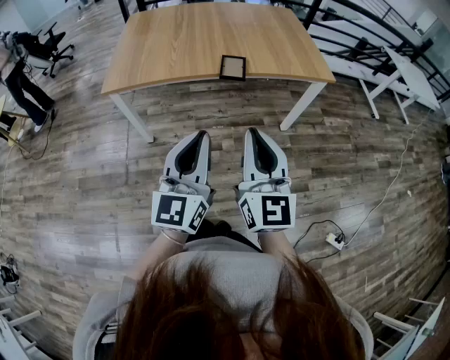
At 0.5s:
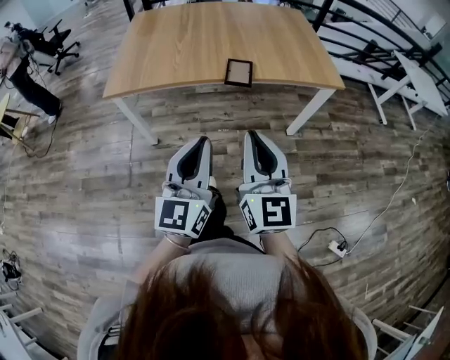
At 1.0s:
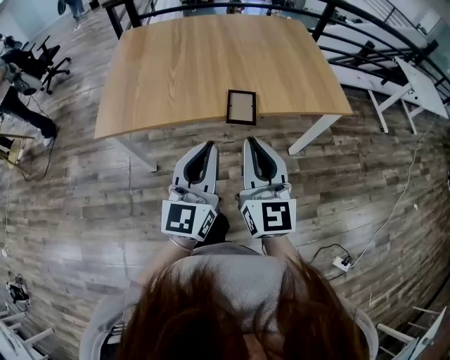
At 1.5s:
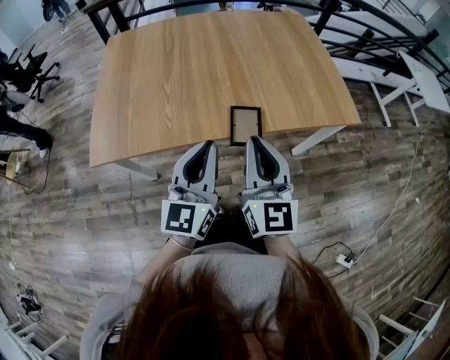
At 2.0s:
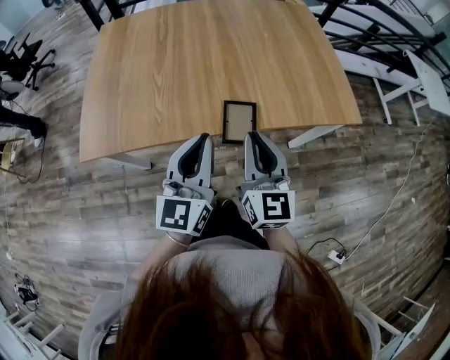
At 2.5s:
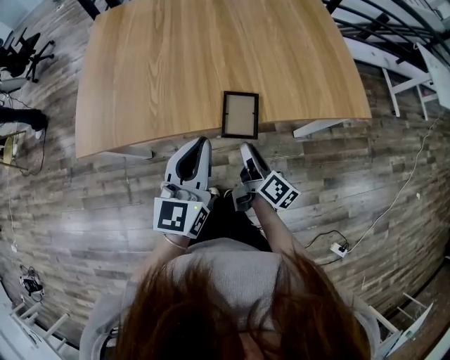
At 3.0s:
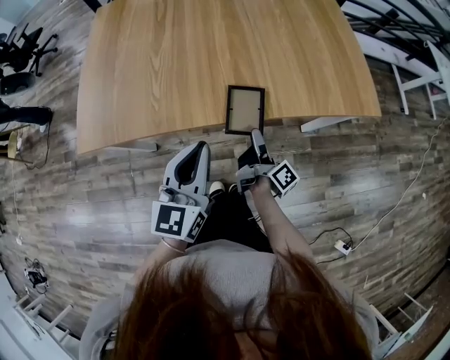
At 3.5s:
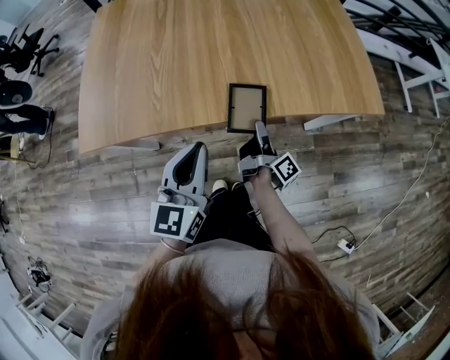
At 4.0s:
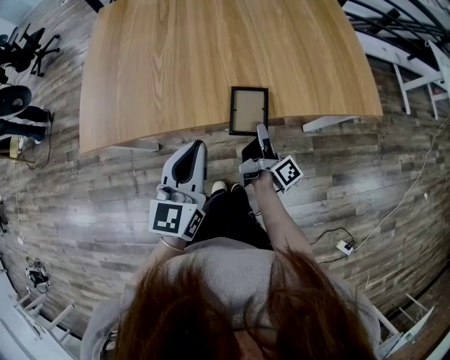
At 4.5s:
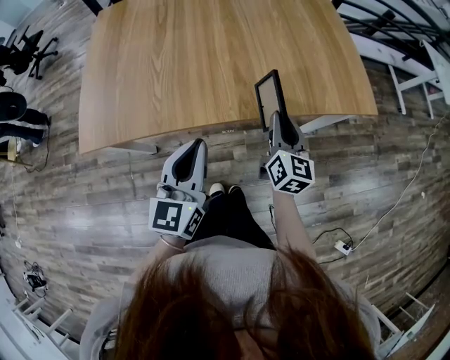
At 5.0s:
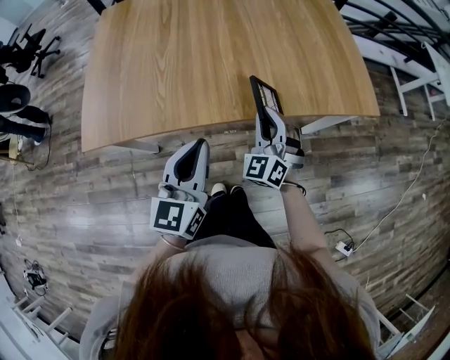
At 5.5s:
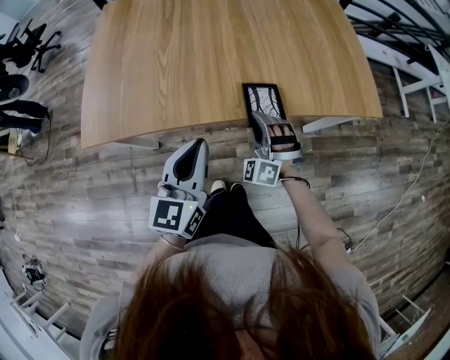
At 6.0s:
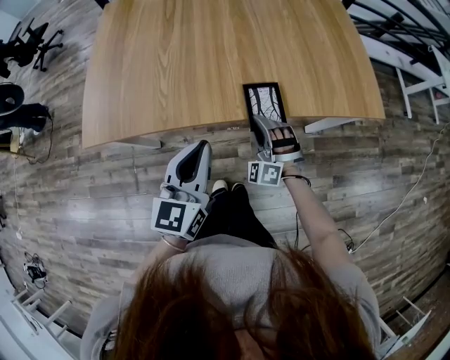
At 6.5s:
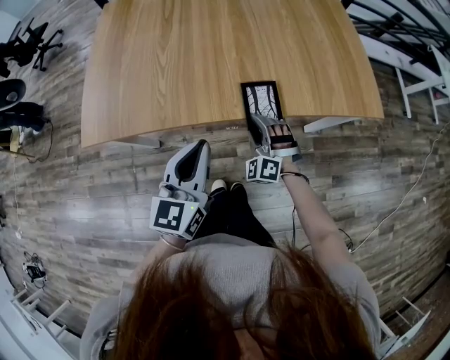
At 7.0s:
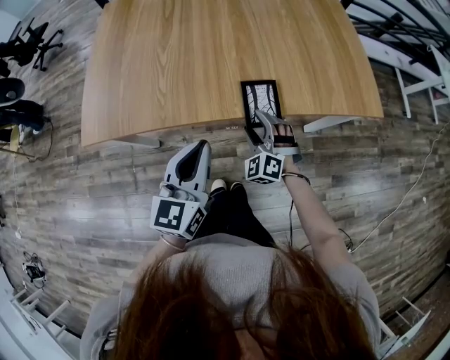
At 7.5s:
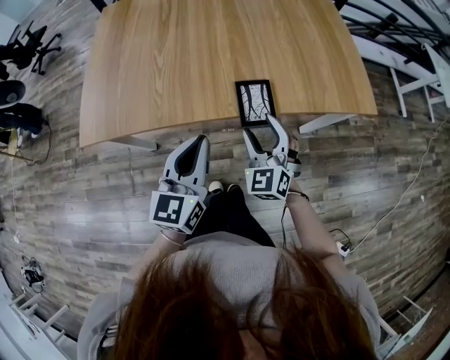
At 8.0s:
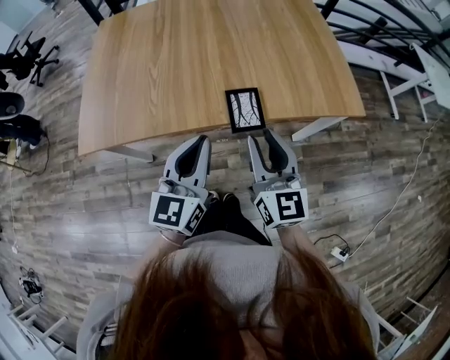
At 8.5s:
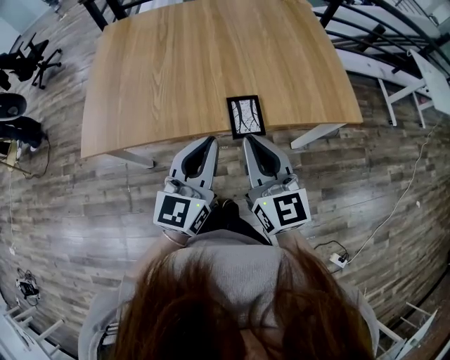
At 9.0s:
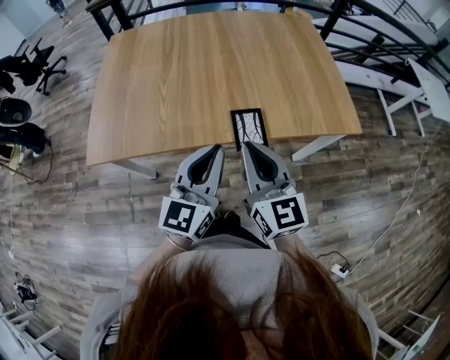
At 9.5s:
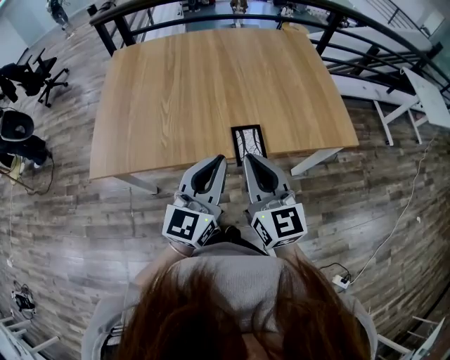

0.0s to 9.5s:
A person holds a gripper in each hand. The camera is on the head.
0.0s to 2.0s: The two grippers go approximately 35 cm forward.
2.0s to 4.0s: The left gripper heads downward, covering about 5 cm, while the right gripper heads downward, covering some 20 cm, and rotates around the line of its fingers by roughly 80 degrees, clockwise from behind.
4.0s to 5.5s: The right gripper moves to the left, roughly 5 cm, reaches about 10 cm upward, then returns, and rolls counterclockwise, seen from behind, by about 160 degrees.
5.5s to 7.5s: The right gripper goes roughly 5 cm upward, swivels approximately 30 degrees, and opens up.
7.5s to 9.5s: The left gripper moves upward, roughly 10 cm. The right gripper is displaced upward by roughly 15 cm, rotates roughly 40 degrees, and closes its fingers.

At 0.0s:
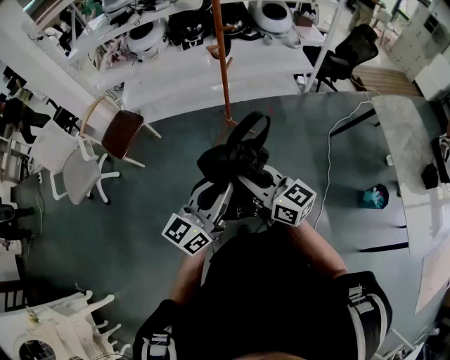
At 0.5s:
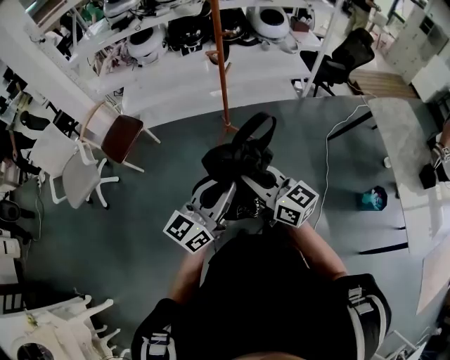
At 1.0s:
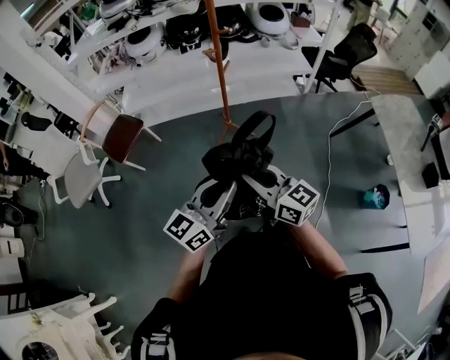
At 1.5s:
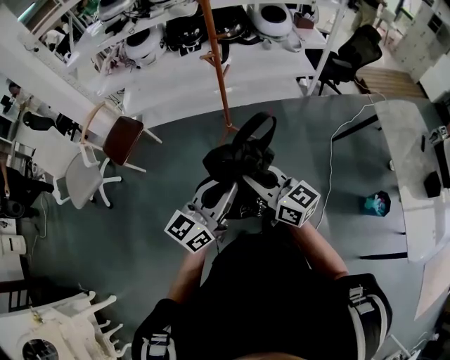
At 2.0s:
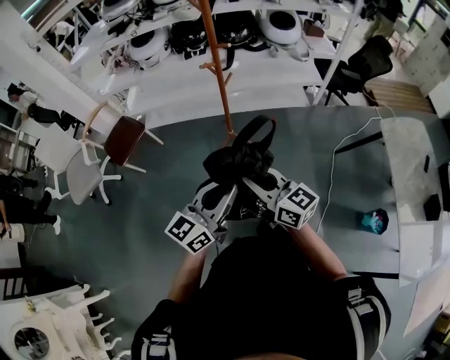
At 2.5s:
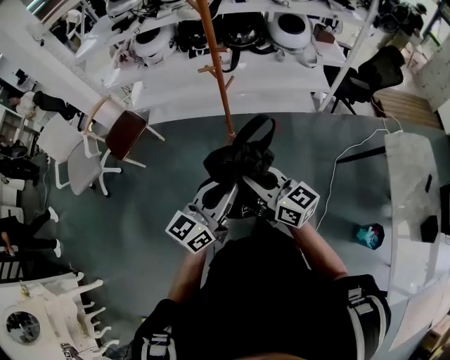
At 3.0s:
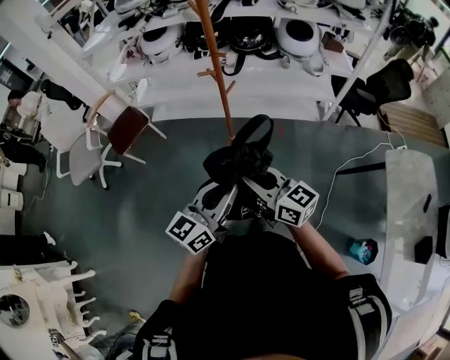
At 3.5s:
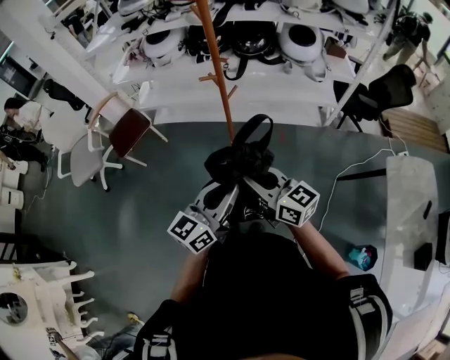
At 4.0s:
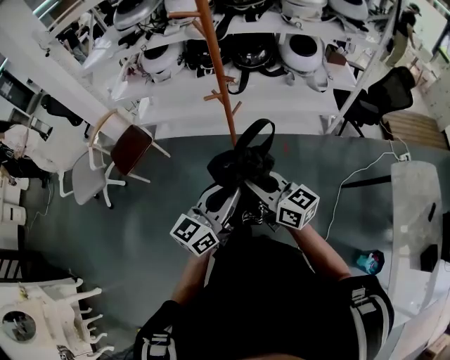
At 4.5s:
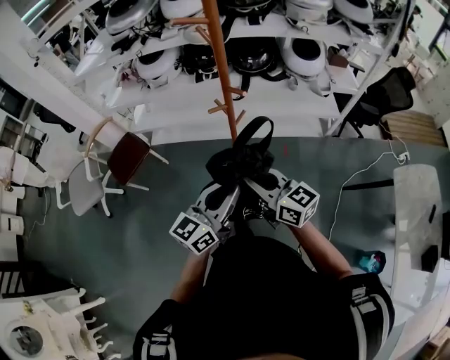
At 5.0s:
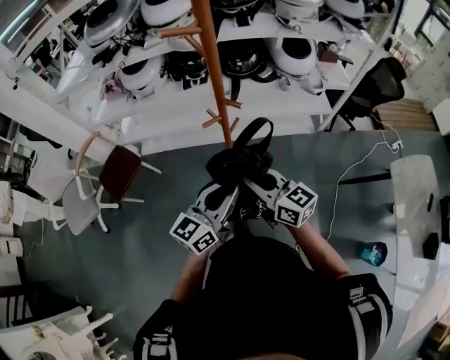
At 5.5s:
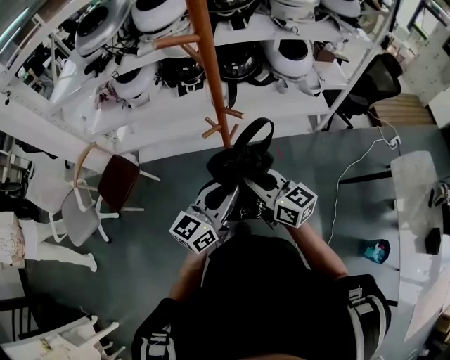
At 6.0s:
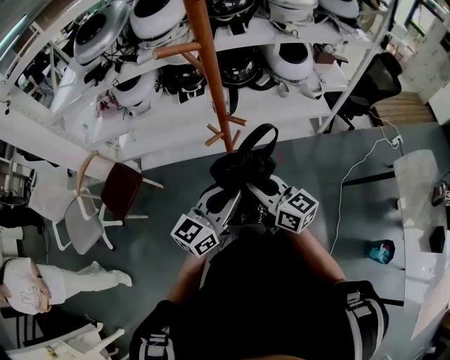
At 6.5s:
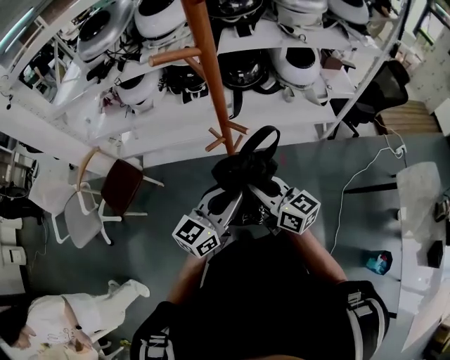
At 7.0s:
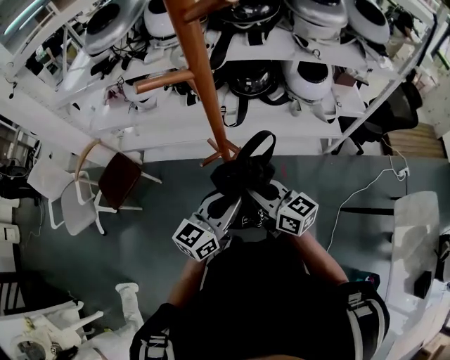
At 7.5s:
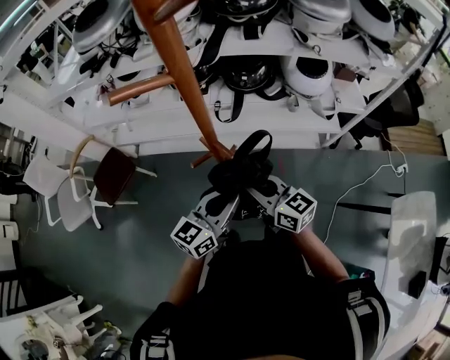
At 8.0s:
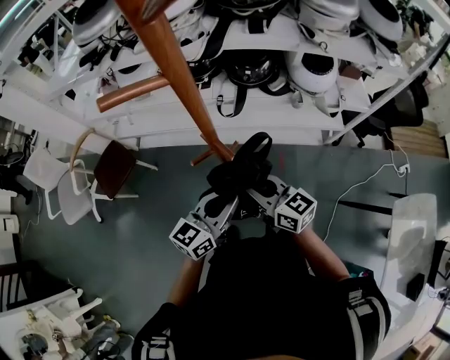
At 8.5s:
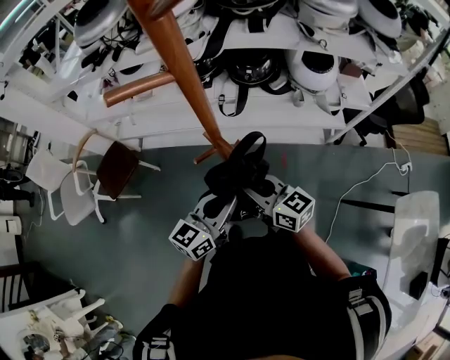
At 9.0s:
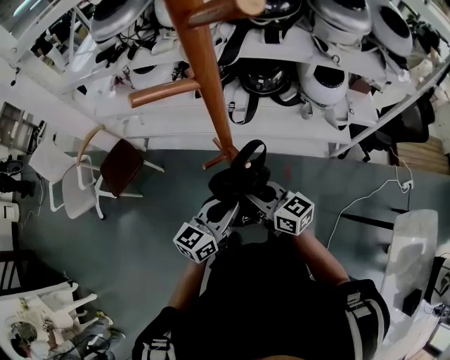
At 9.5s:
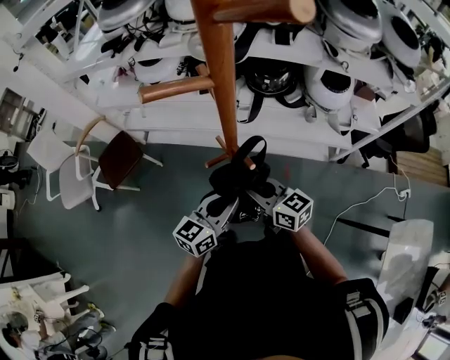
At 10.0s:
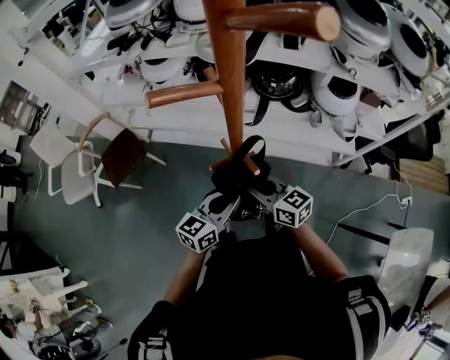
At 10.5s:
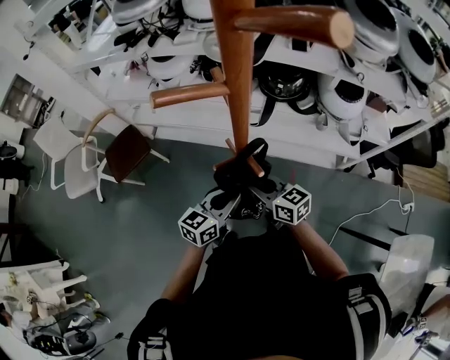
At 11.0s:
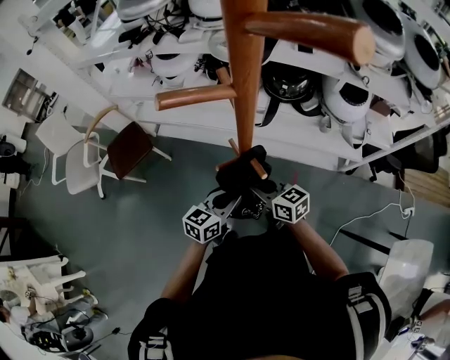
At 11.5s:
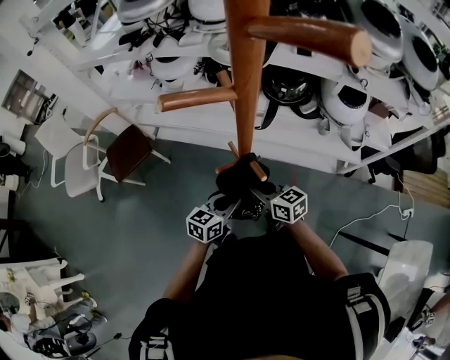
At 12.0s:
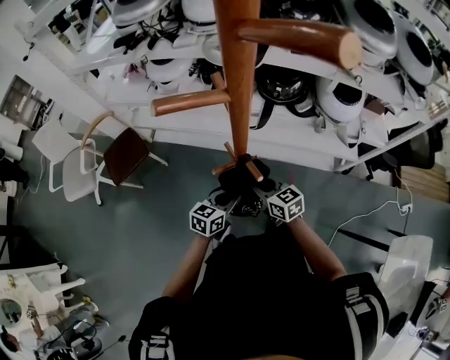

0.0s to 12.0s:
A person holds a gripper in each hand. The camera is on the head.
0.0s to 2.0s: Both grippers travel together forward and to the right, about 20 cm.
2.0s to 4.0s: Both grippers move forward and to the right, approximately 20 cm.
4.0s to 6.0s: Both grippers move forward, about 25 cm.
6.0s to 8.0s: Both grippers move forward and to the right, roughly 15 cm.
8.0s to 10.0s: The right gripper moves roughly 5 cm. Meanwhile the left gripper moves approximately 5 cm.
10.0s to 12.0s: Both grippers move downward, about 10 cm.

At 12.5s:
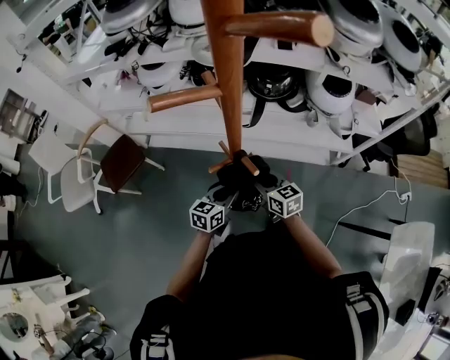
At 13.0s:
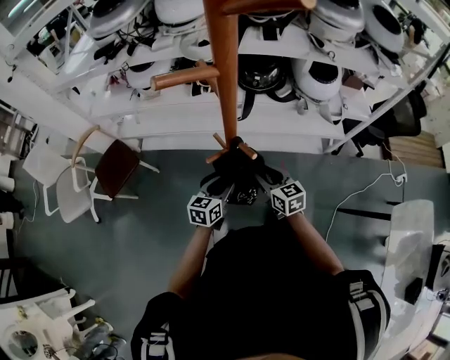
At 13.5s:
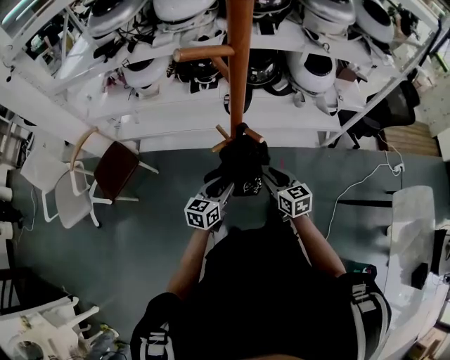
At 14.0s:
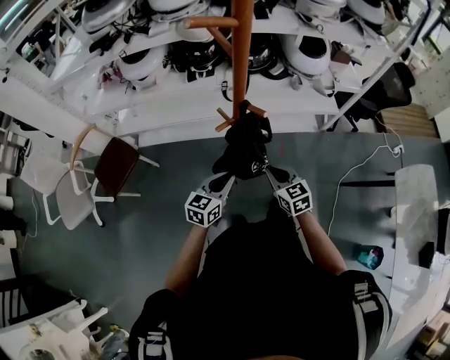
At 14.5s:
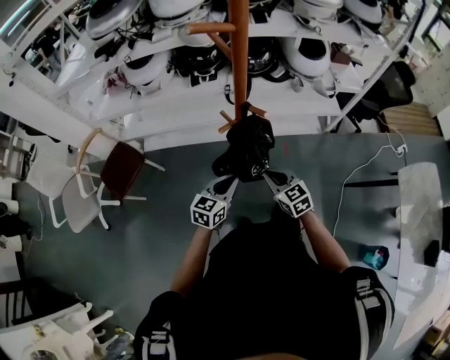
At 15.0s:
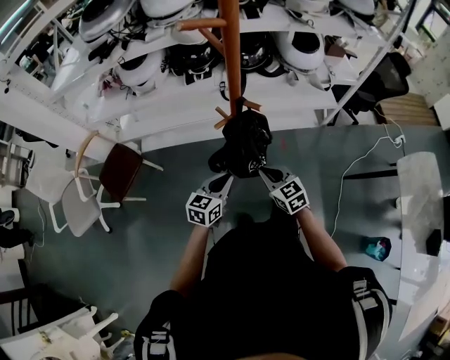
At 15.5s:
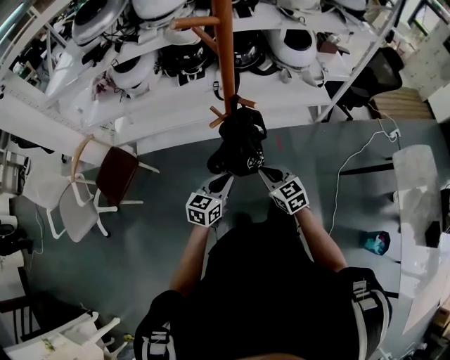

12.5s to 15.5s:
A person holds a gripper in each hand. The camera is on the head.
12.5s to 14.0s: The right gripper goes roughly 15 cm backward, swivels roughly 20 degrees, and closes; the left gripper heads backward and to the left, covering some 15 cm.
14.0s to 15.5s: The grippers stay close to where they were, moving slightly.

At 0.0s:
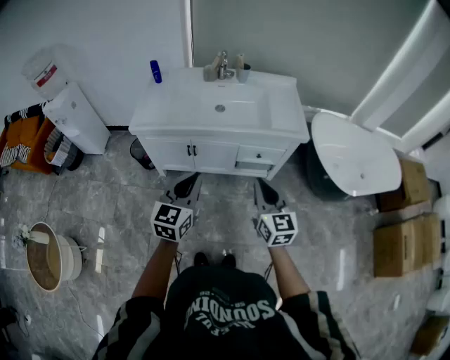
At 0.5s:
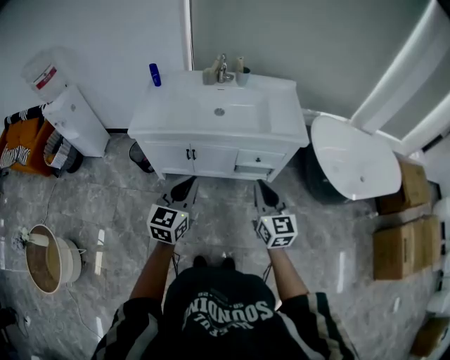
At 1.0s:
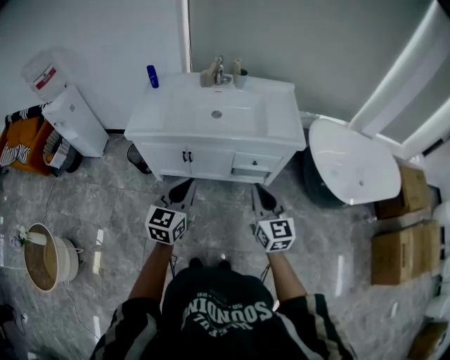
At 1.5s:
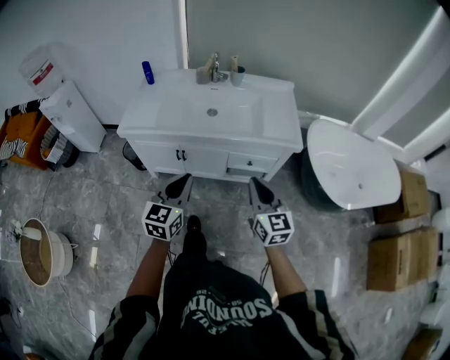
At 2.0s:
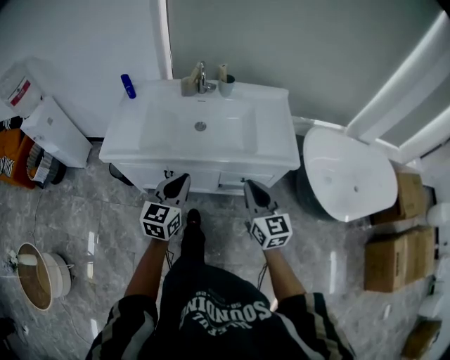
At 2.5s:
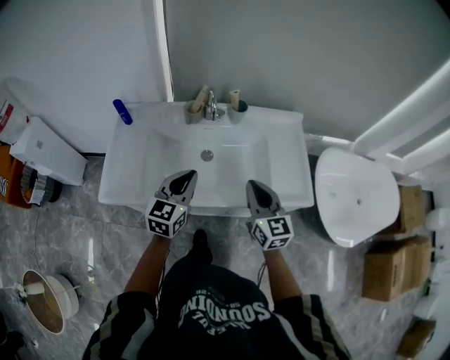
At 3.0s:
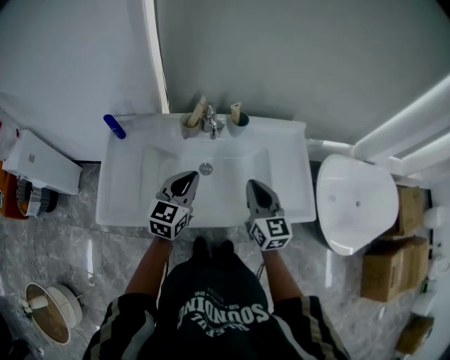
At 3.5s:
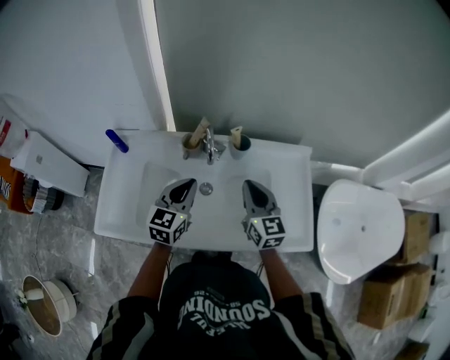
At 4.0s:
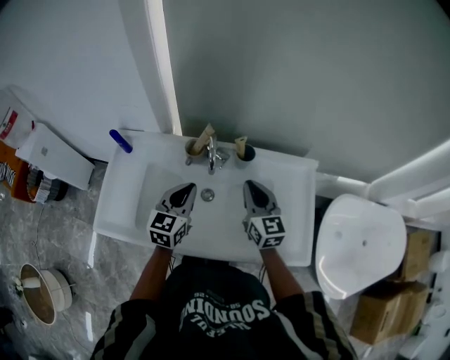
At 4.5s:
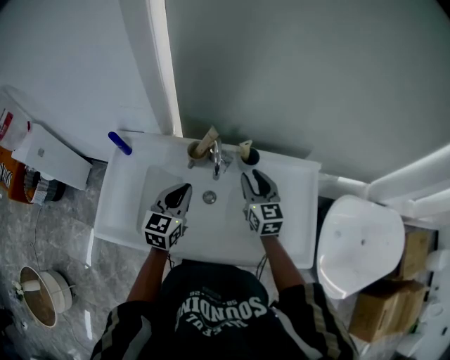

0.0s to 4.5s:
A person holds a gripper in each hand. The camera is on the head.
0.0s to 2.0s: The grippers both shift forward by approximately 20 cm.
2.0s to 4.5s: The two grippers travel together, forward, some 40 cm. The right gripper opens up.
